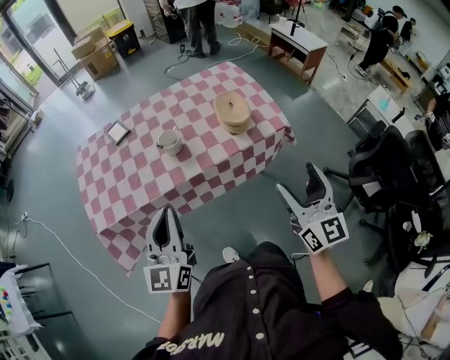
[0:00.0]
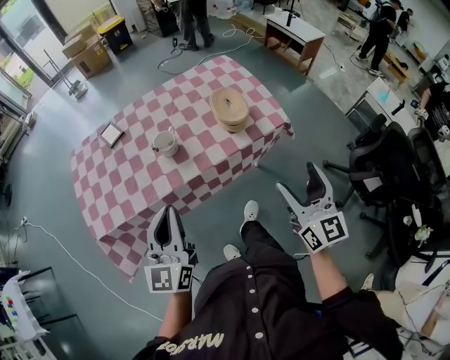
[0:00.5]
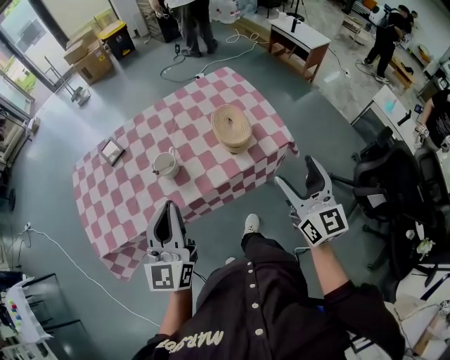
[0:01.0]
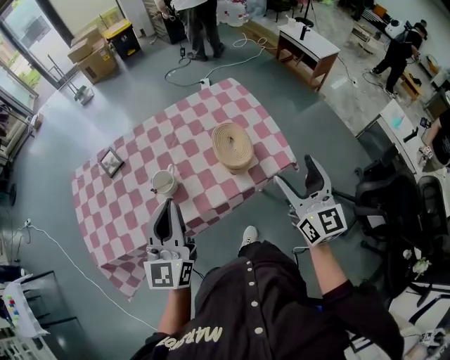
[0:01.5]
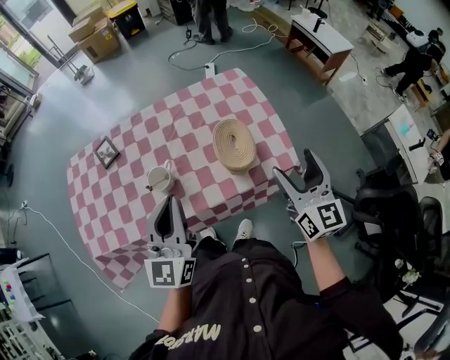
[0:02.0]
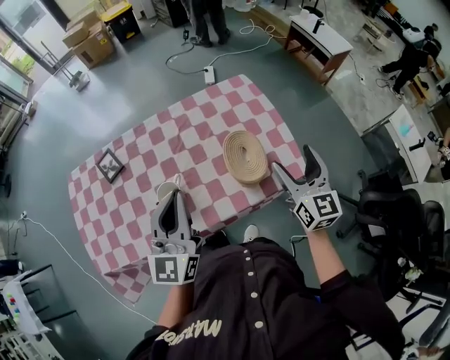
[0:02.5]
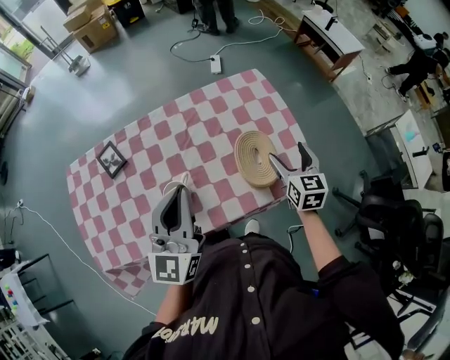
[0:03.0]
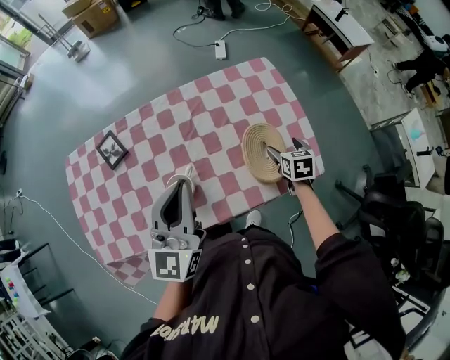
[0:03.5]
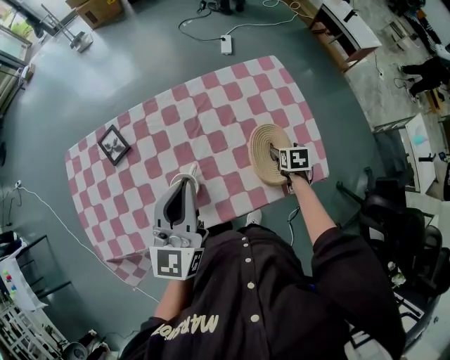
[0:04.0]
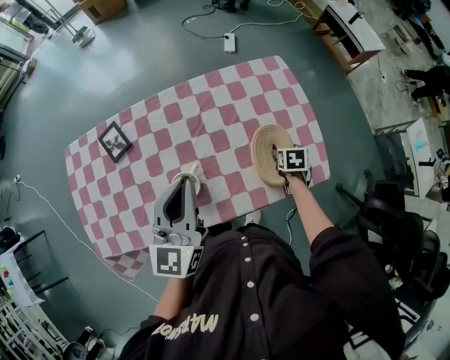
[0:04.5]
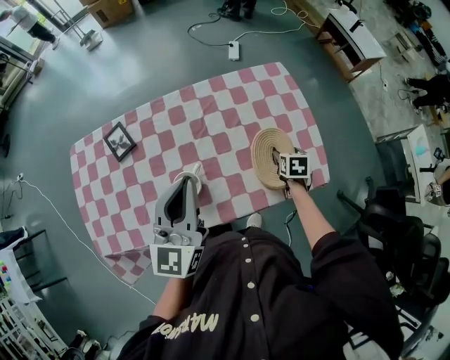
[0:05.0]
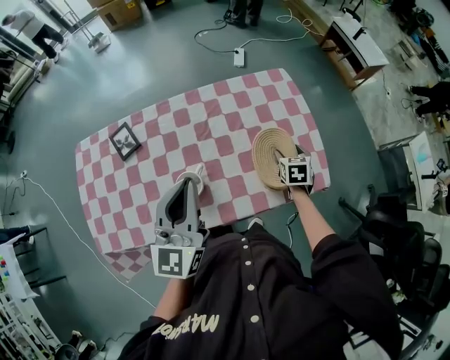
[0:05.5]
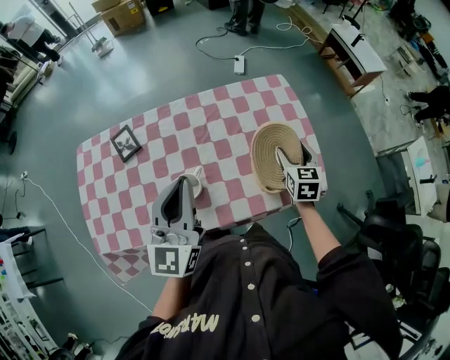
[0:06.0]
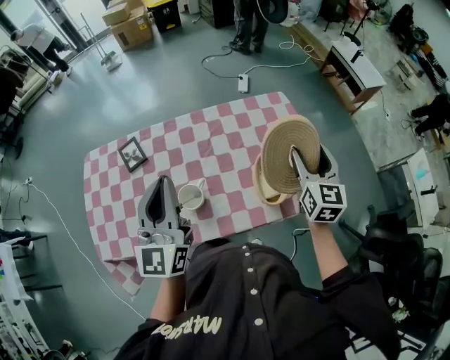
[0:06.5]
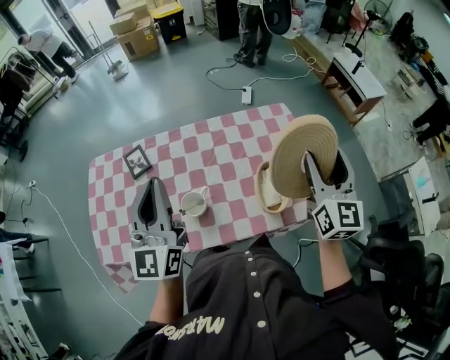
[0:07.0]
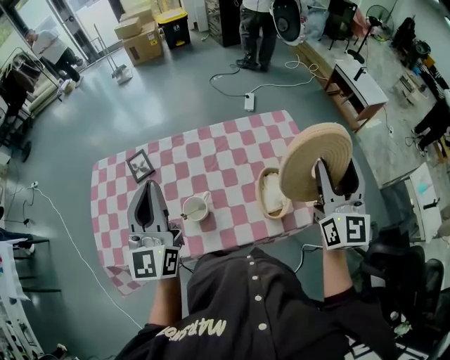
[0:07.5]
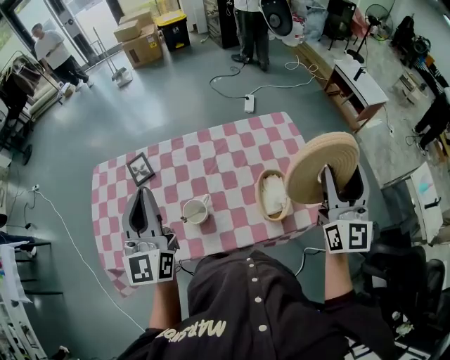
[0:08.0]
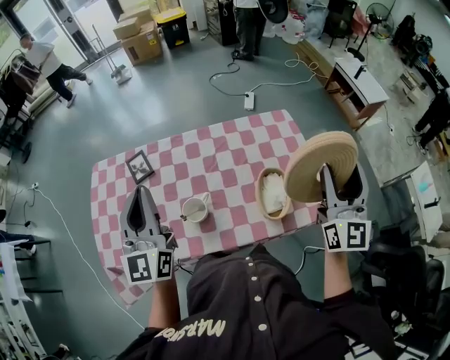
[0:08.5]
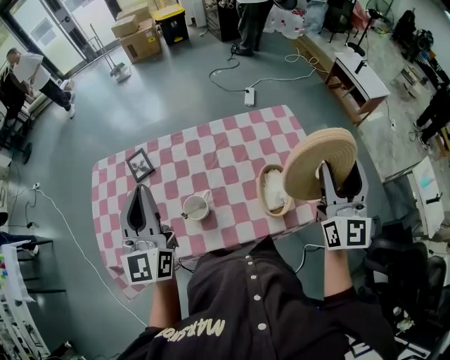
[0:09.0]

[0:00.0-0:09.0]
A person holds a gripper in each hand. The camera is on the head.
0:00.0 to 0:02.0: The grippers both shift forward by about 25 cm.
0:02.0 to 0:04.5: The left gripper moves forward and to the left, approximately 15 cm. Meanwhile the right gripper heads downward and forward, covering roughly 40 cm, and points its fingers about 70 degrees further downward.
0:04.5 to 0:07.0: The right gripper shifts roughly 40 cm upward, and angles its fingers upward, by roughly 70 degrees. Meanwhile the left gripper shifts approximately 15 cm upward and to the left, and turns by approximately 20 degrees.
0:07.0 to 0:09.0: The grippers stay close to where they were, moving slightly.

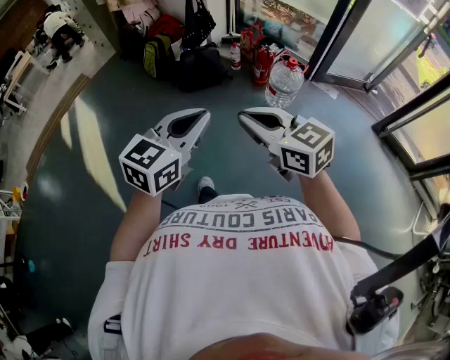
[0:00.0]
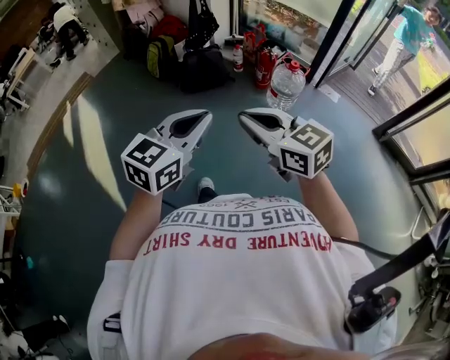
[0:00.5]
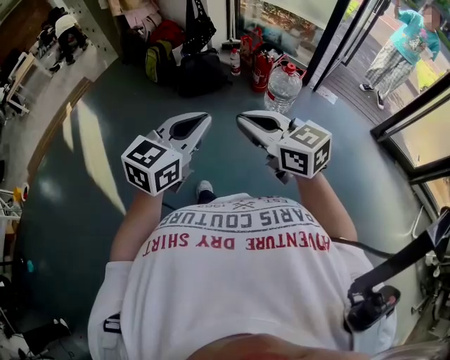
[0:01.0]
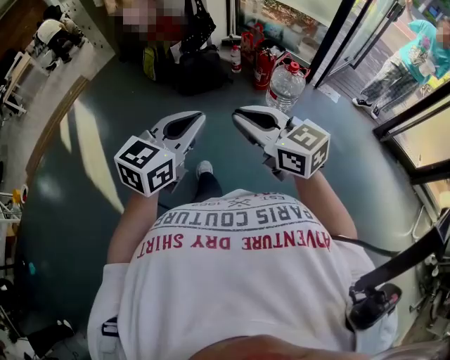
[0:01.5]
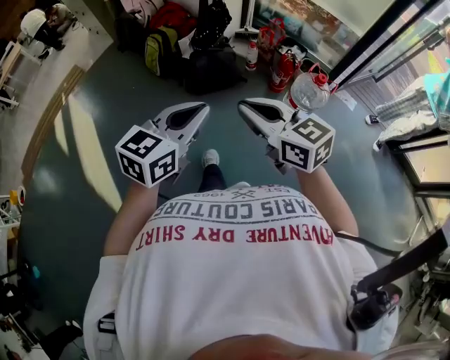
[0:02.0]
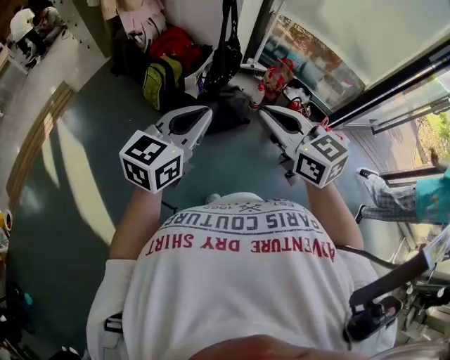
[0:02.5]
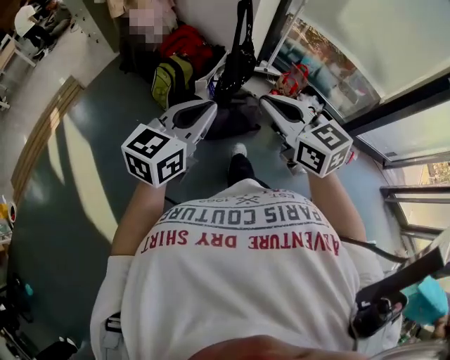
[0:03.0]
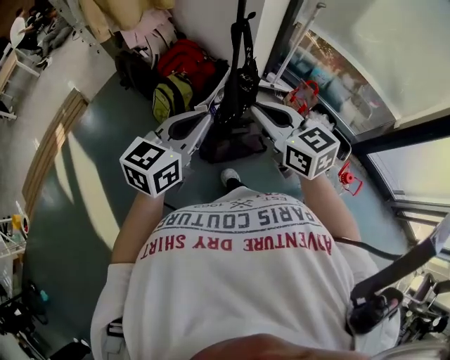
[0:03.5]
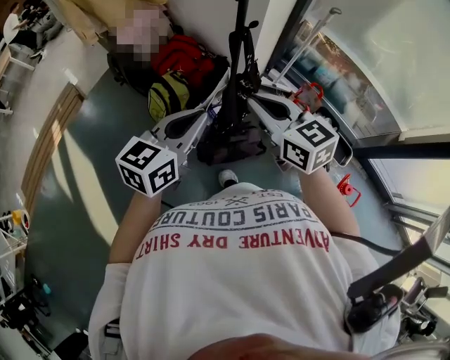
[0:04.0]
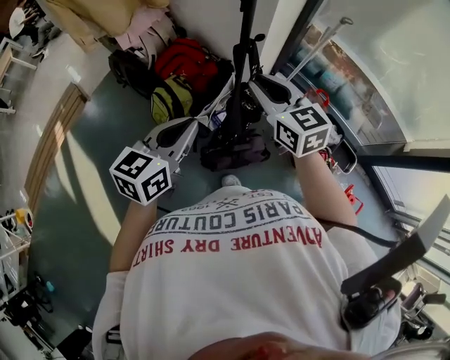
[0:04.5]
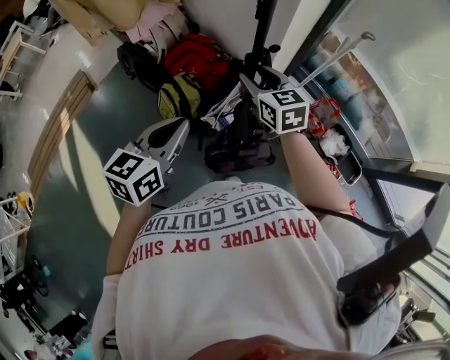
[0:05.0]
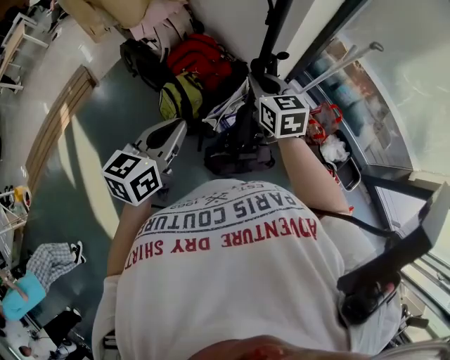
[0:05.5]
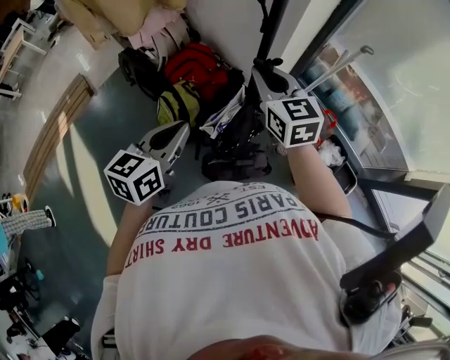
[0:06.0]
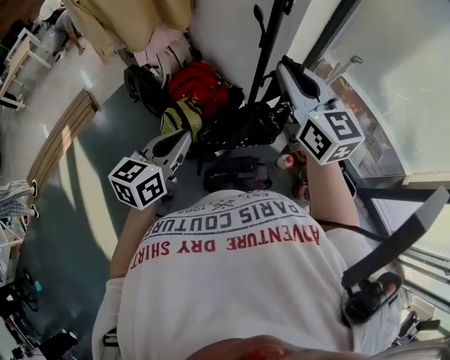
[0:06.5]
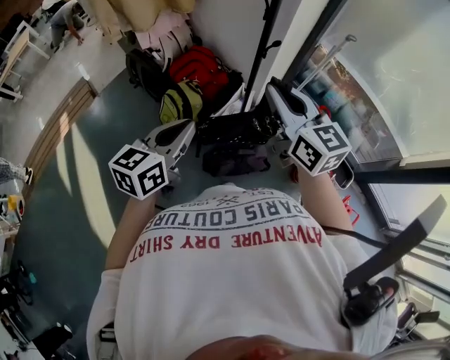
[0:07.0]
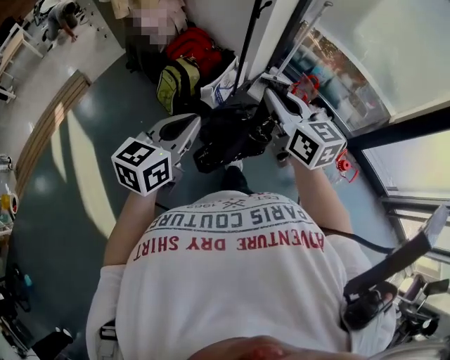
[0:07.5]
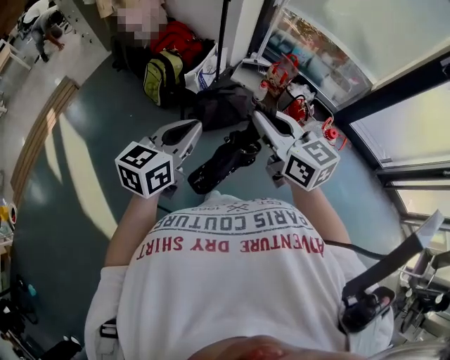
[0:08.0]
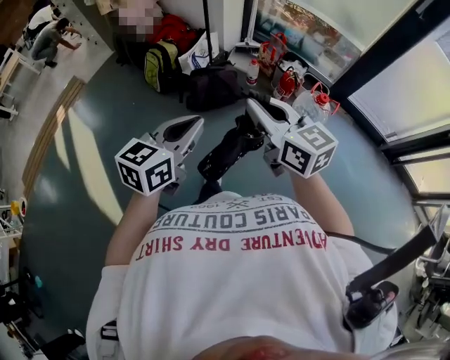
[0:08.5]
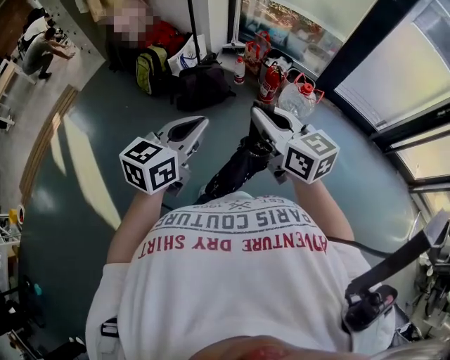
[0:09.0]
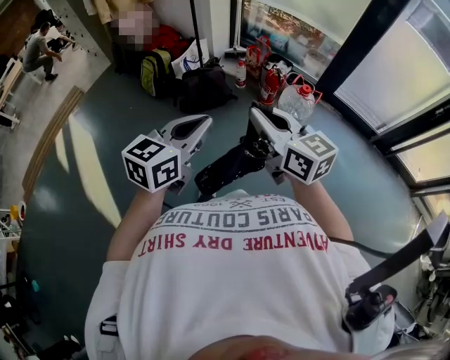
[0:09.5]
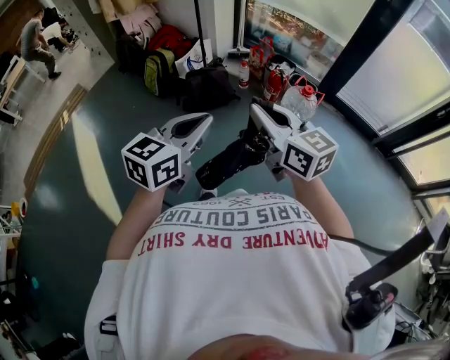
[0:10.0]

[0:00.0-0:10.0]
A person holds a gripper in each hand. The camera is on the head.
0:00.0 to 0:02.0: Both grippers move forward, roughly 30 cm.
0:02.0 to 0:04.0: The two grippers travel together, forward, approximately 70 cm.
0:04.0 to 0:06.0: The left gripper shifts roughly 10 cm forward and to the left. Meanwhile the right gripper is displaced forward by roughly 20 cm, and opens, then closes again.
0:06.0 to 0:08.0: The two grippers travel together, backward, about 50 cm.
0:08.0 to 0:10.0: The two grippers go some 40 cm backward and to the right.

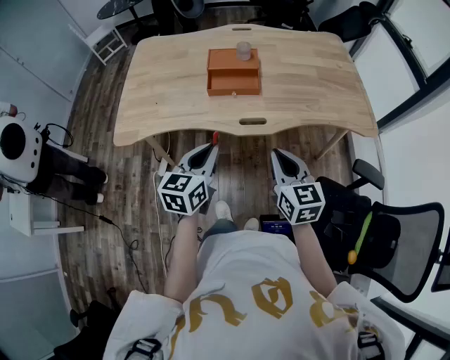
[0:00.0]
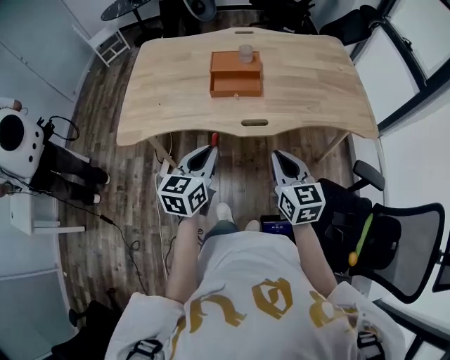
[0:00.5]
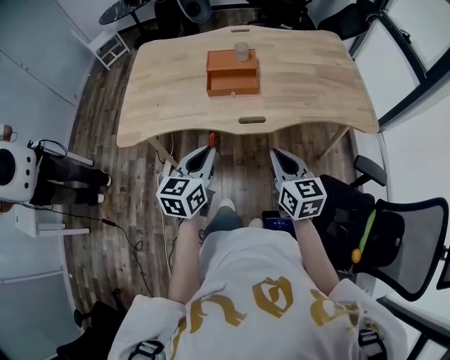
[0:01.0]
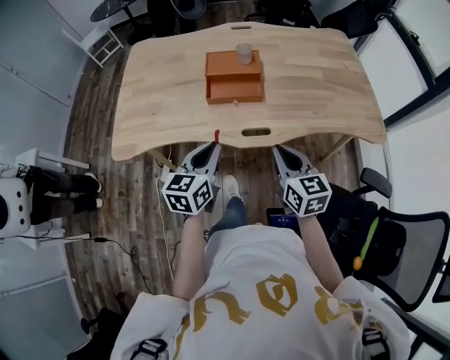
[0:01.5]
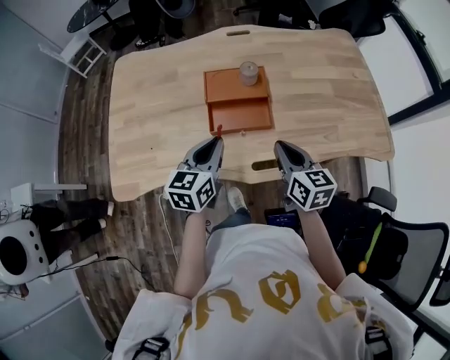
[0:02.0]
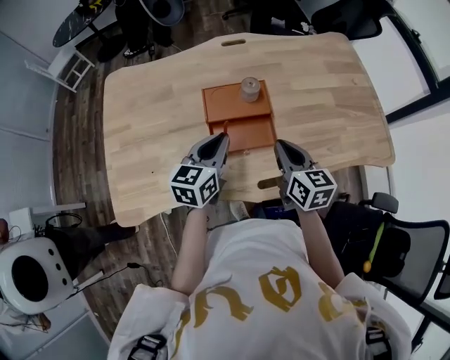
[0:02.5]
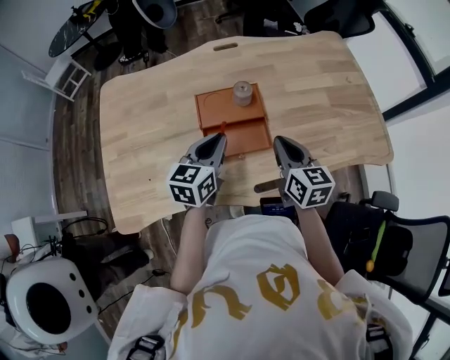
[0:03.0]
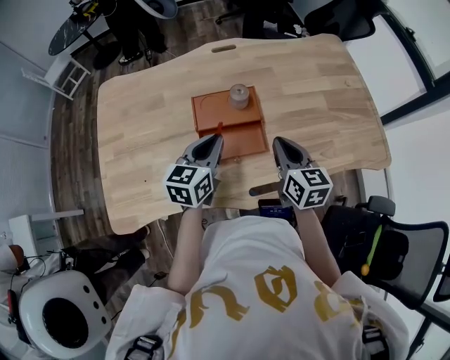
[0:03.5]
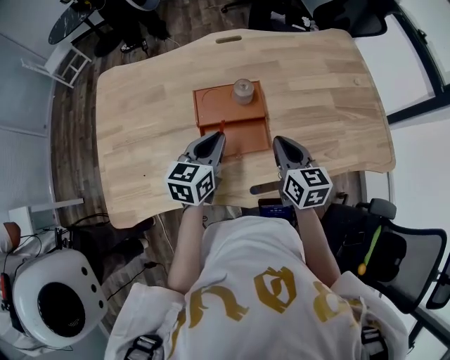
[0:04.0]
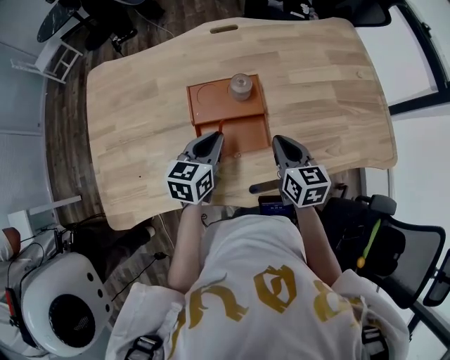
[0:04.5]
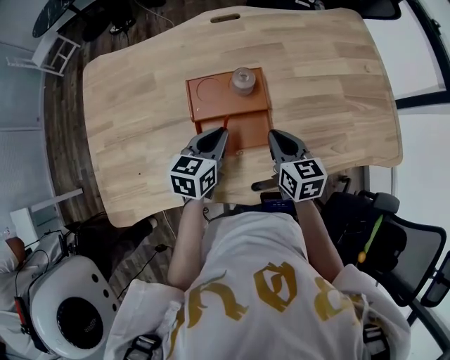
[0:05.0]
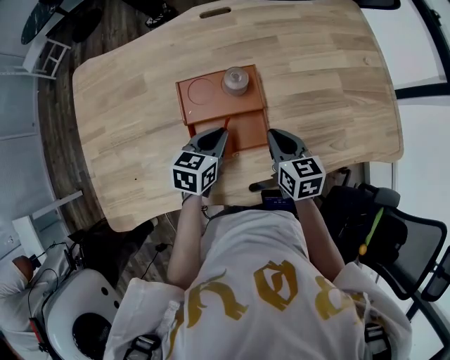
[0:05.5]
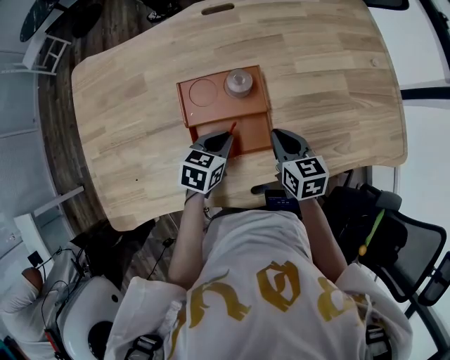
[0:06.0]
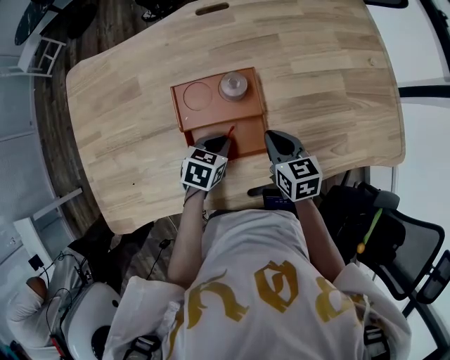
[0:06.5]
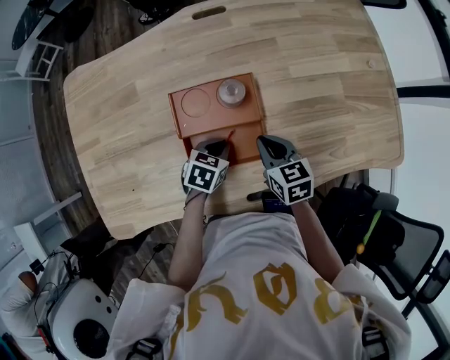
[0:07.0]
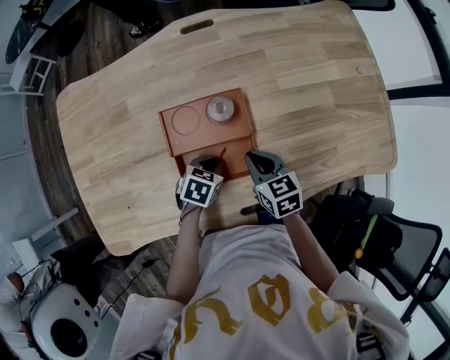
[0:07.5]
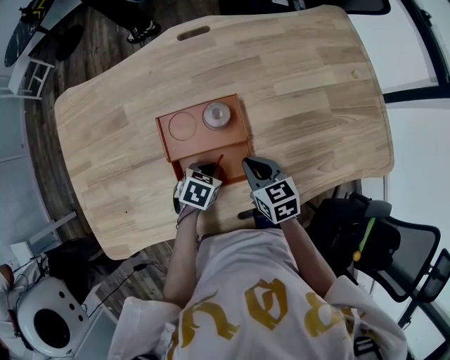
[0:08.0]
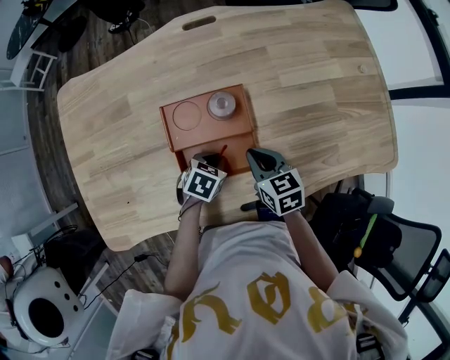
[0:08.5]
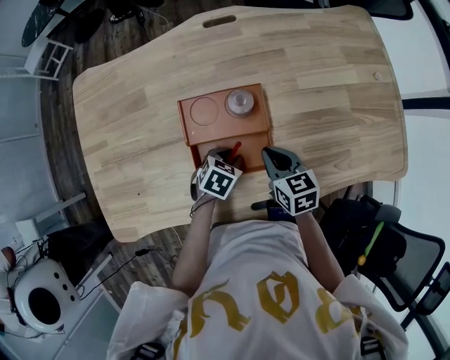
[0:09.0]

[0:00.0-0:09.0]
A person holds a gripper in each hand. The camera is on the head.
0:00.0 to 0:02.0: The two grippers go roughly 25 cm forward.
0:02.0 to 0:04.5: The two grippers go approximately 15 cm forward and downward.
0:04.5 to 0:07.0: The left gripper heads downward, covering about 15 cm, and turns by roughly 30 degrees. The right gripper goes some 10 cm downward.
0:07.0 to 0:09.0: The grippers move only a little.
